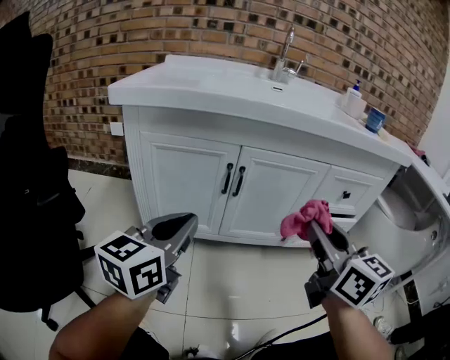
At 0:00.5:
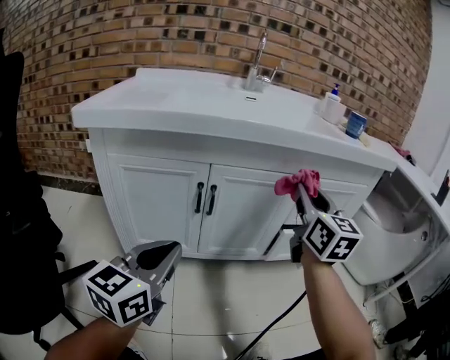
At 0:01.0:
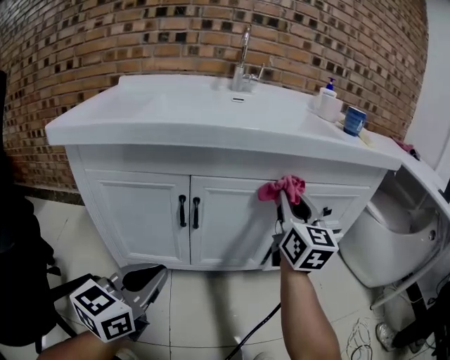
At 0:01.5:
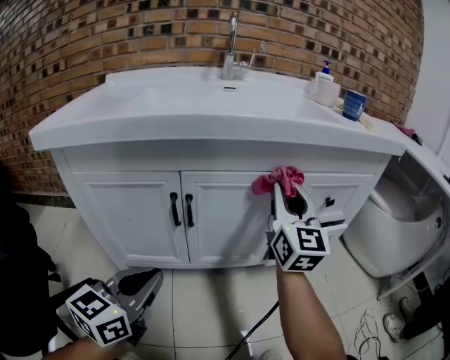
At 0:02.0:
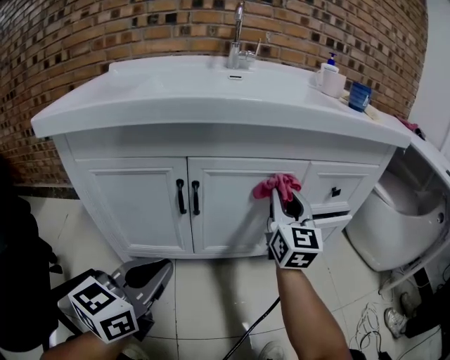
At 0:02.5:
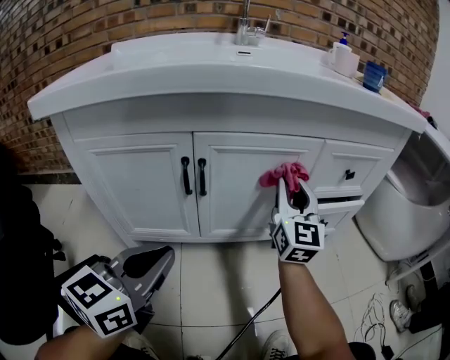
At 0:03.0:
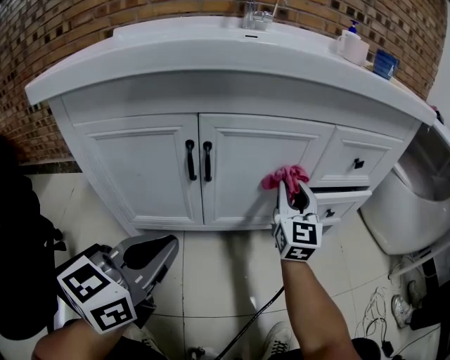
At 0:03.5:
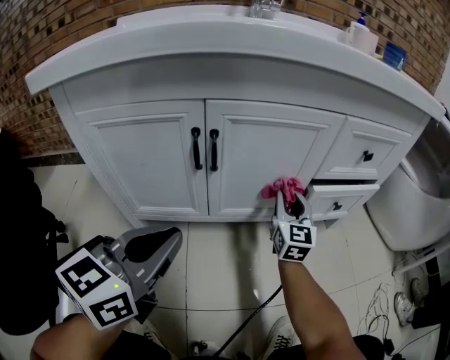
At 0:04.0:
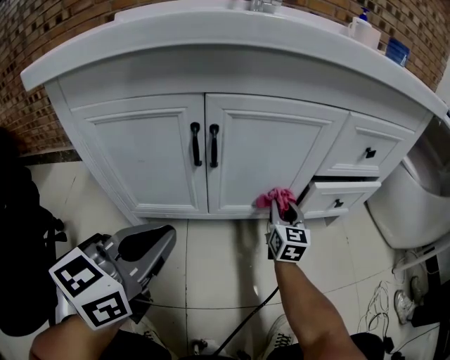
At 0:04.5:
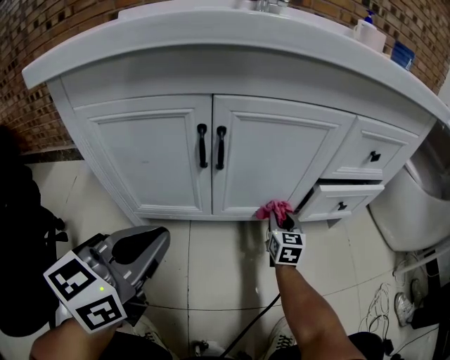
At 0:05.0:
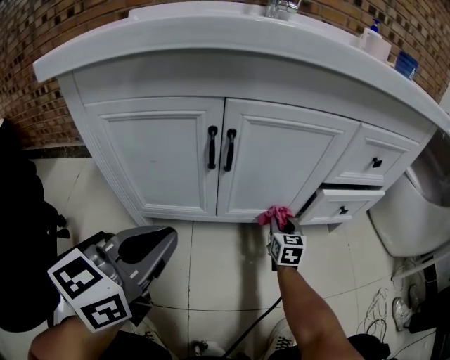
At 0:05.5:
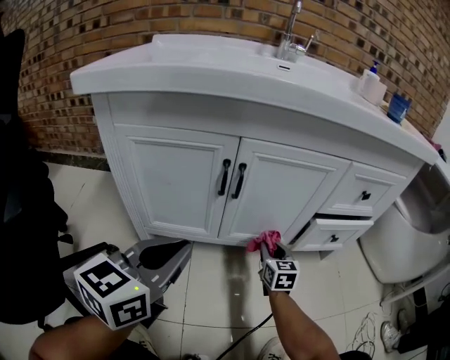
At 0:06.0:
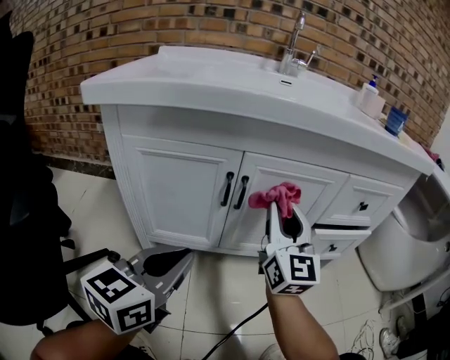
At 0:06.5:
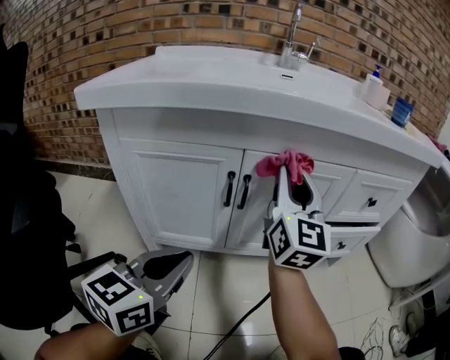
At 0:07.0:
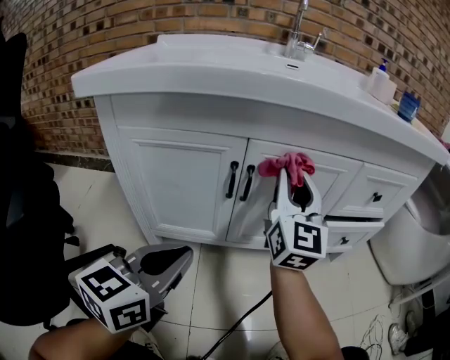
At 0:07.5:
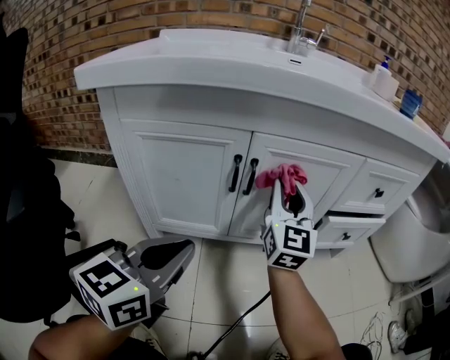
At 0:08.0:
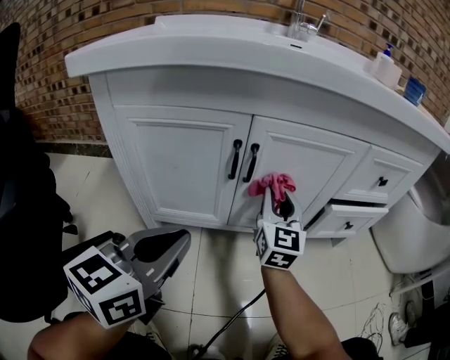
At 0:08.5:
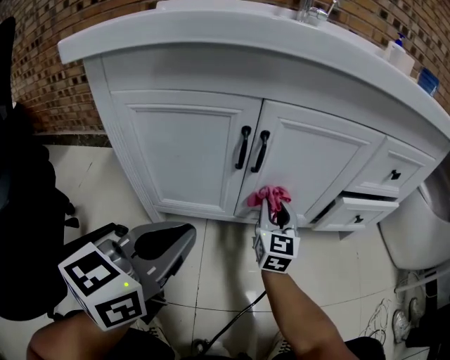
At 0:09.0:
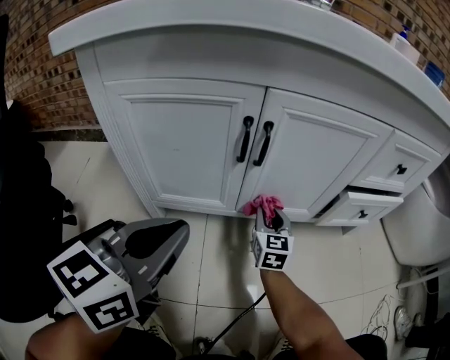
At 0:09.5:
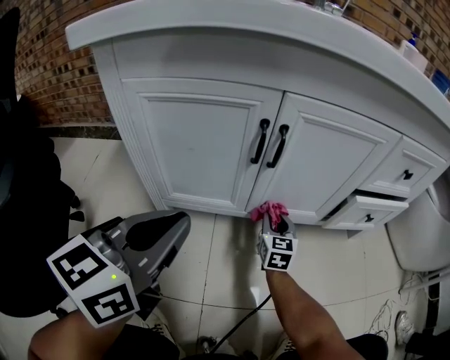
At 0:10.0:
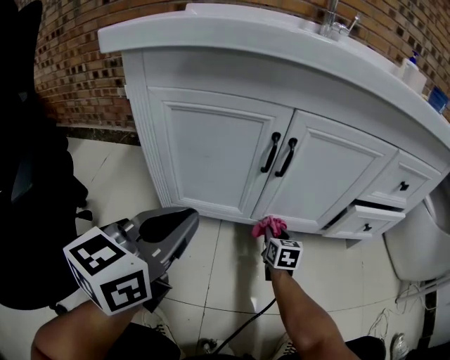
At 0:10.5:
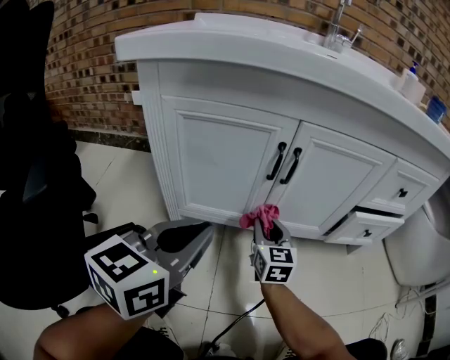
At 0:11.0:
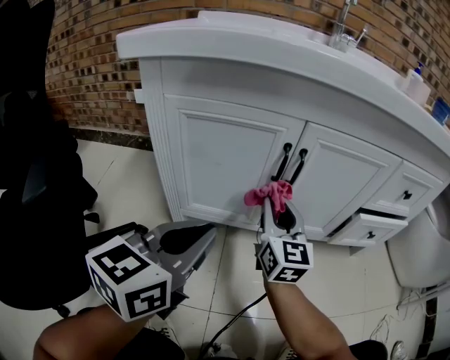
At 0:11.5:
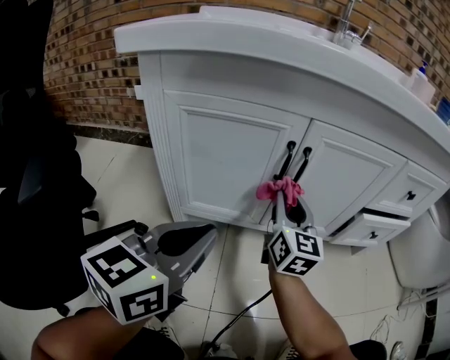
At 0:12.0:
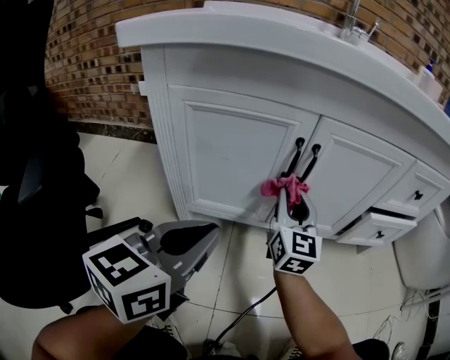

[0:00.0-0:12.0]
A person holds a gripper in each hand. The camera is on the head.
0:00.0 to 0:02.0: The right gripper heads forward, covering about 20 cm, and turns by approximately 30 degrees, while the left gripper moves downward, roughly 5 cm.
0:02.0 to 0:04.0: The right gripper travels downward by some 25 cm, and turns by roughly 20 degrees.
0:04.0 to 0:06.0: The right gripper is displaced upward by approximately 25 cm, and changes its angle by roughly 30 degrees.
0:06.0 to 0:08.0: The right gripper goes some 15 cm downward and forward.
0:08.0 to 0:10.0: The right gripper moves downward, roughly 25 cm, and tips its fingers downward by approximately 40 degrees.
0:10.0 to 0:12.0: The right gripper moves upward, about 25 cm, and tilts its fingers roughly 40 degrees upward.

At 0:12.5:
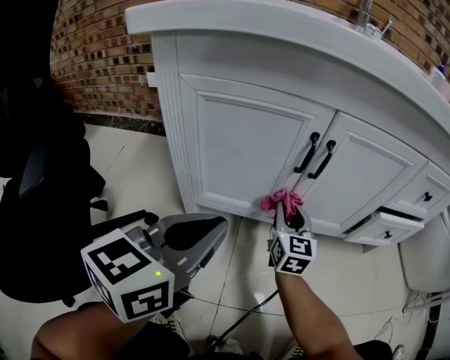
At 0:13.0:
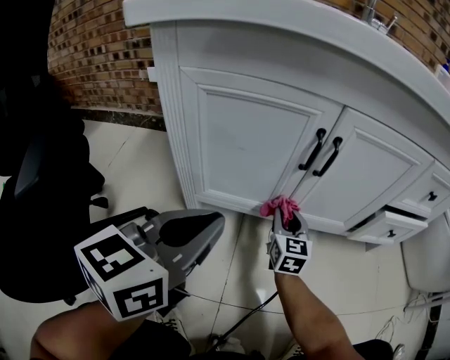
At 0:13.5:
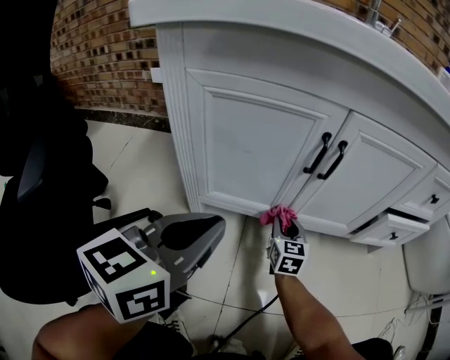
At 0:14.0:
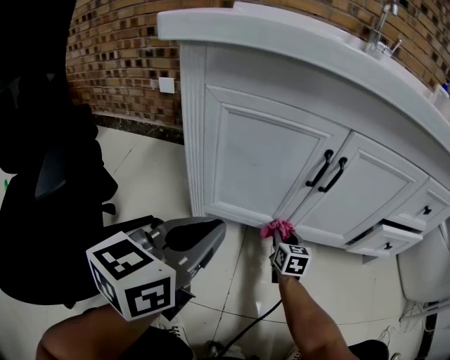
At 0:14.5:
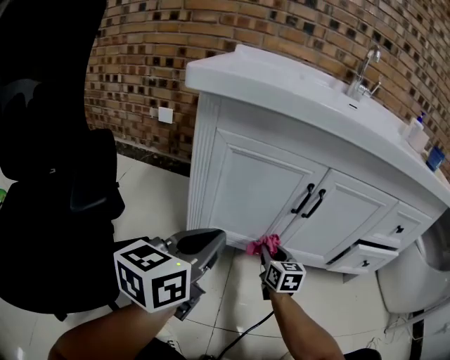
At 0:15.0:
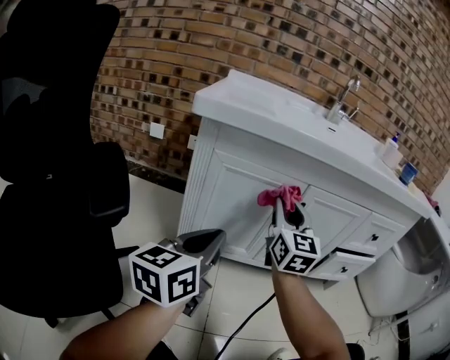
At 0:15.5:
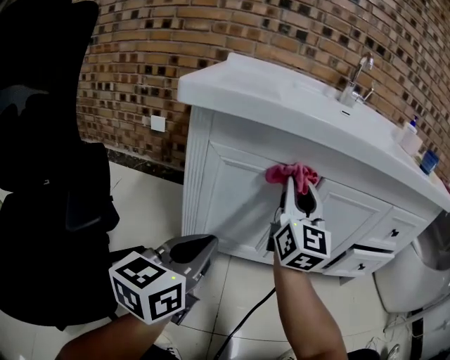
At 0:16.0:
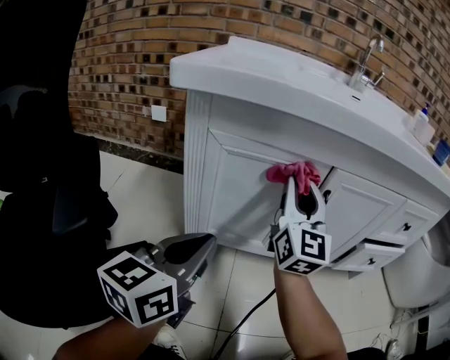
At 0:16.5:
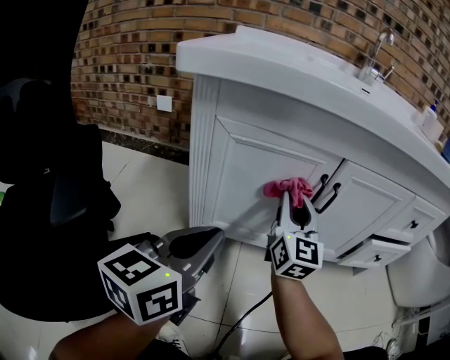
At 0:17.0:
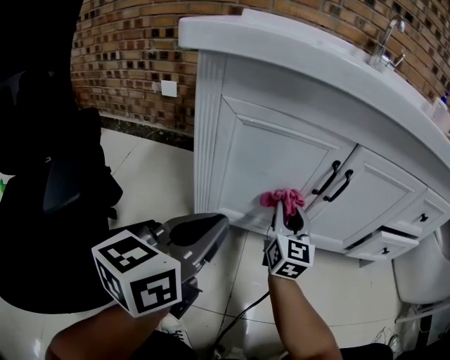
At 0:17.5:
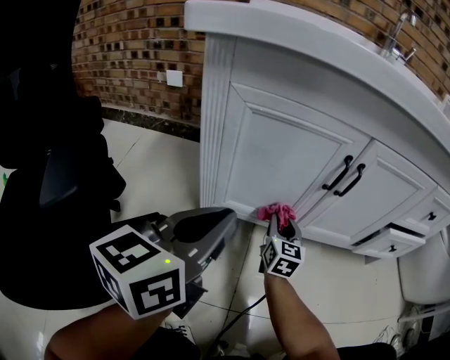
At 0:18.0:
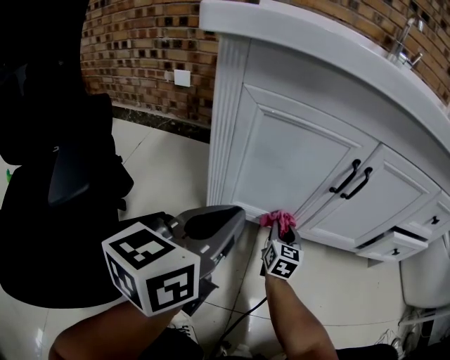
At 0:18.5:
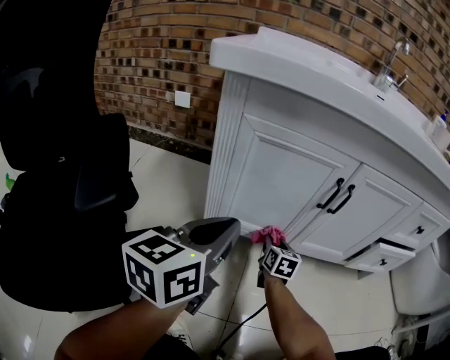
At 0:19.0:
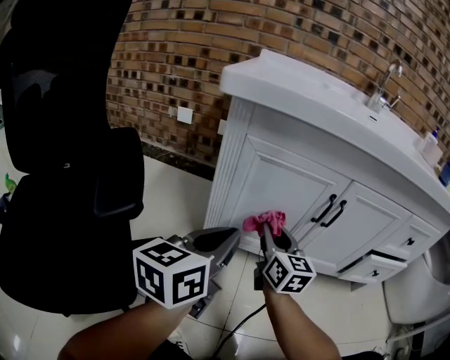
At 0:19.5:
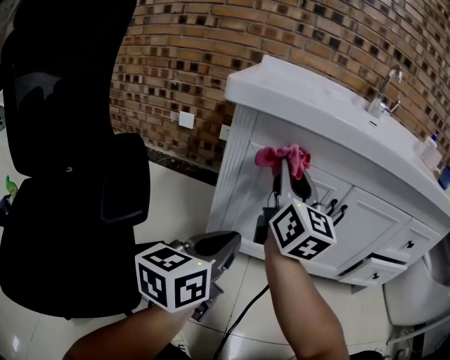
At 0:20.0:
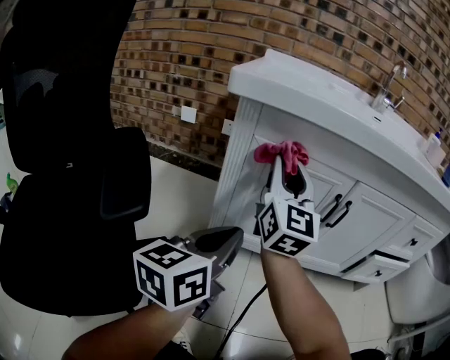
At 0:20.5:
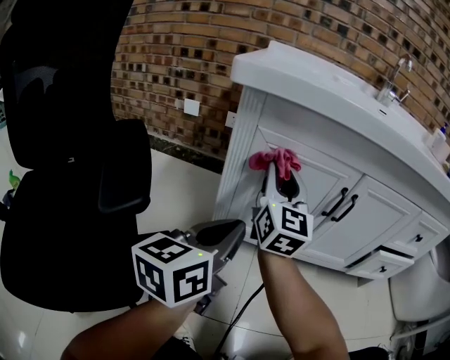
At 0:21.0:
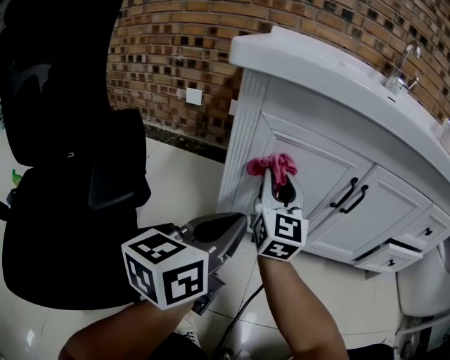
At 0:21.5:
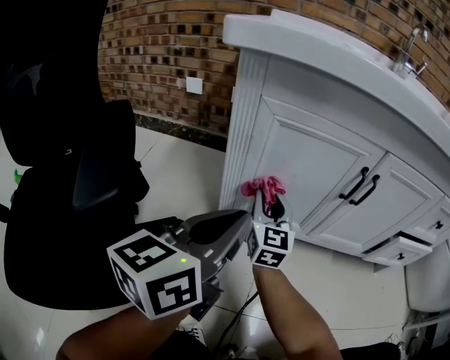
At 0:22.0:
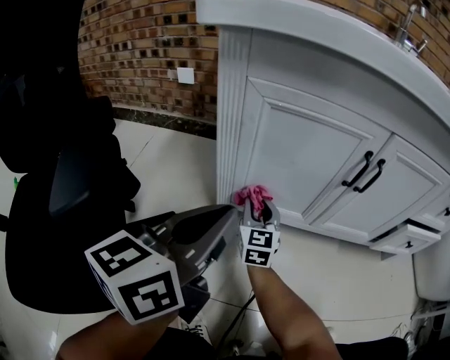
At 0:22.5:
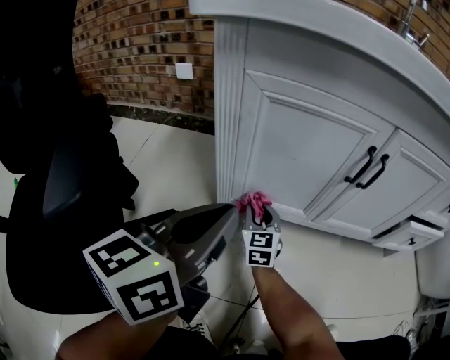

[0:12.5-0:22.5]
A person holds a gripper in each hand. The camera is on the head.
0:12.5 to 0:14.5: The left gripper shifts roughly 5 cm to the left, while the right gripper travels downward and back again, about 15 cm each way.
0:14.5 to 0:16.5: The right gripper is displaced upward by roughly 20 cm, and points its fingers about 30 degrees further upward.
0:16.5 to 0:18.5: The right gripper shifts about 30 cm downward, and points its fingers roughly 40 degrees further downward.
0:18.5 to 0:20.5: The right gripper heads upward, covering some 35 cm, and angles its fingers upward, by approximately 40 degrees.
0:20.5 to 0:22.5: The right gripper goes approximately 35 cm downward, and changes its angle by some 30 degrees.

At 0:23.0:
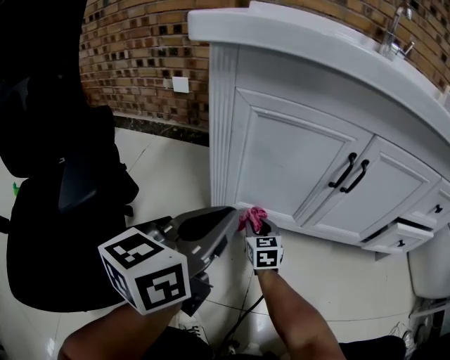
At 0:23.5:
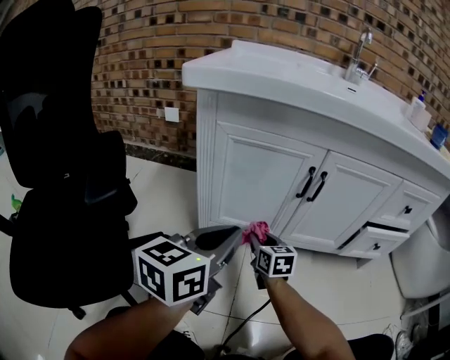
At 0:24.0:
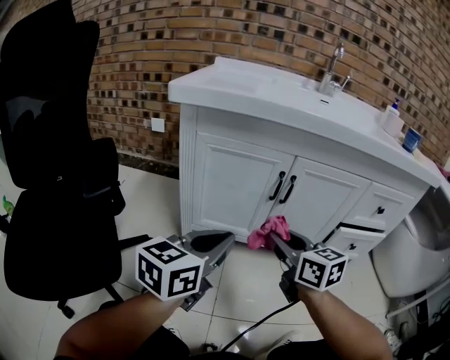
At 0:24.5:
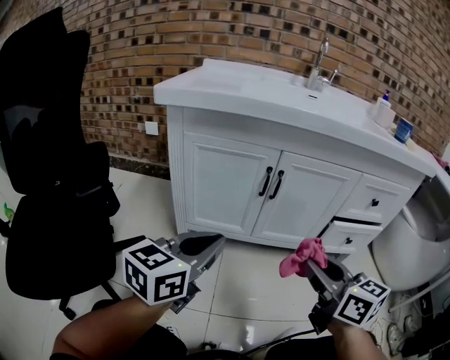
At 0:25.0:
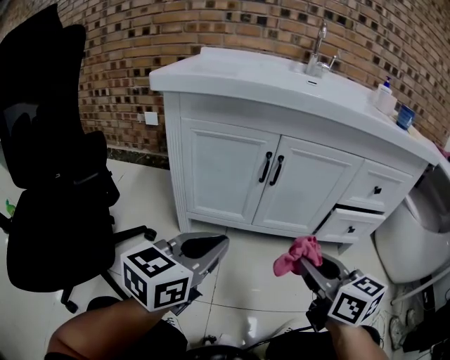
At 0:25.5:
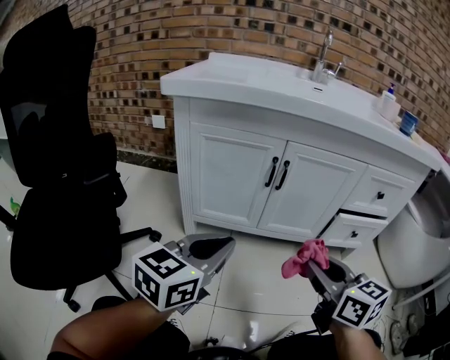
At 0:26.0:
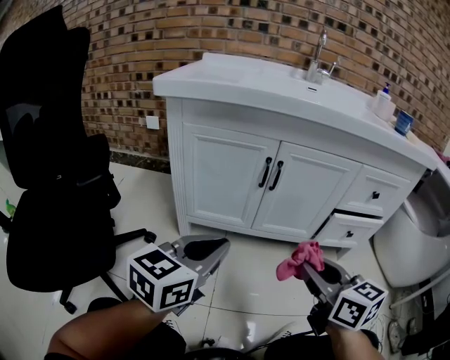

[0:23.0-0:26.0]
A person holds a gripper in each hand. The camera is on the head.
0:23.0 to 0:24.5: The left gripper goes about 15 cm to the right and backward. The right gripper moves upward, to the right and backward, roughly 50 cm, and changes its angle by roughly 20 degrees.
0:24.5 to 0:26.0: There are only small adjustments of the grippers.

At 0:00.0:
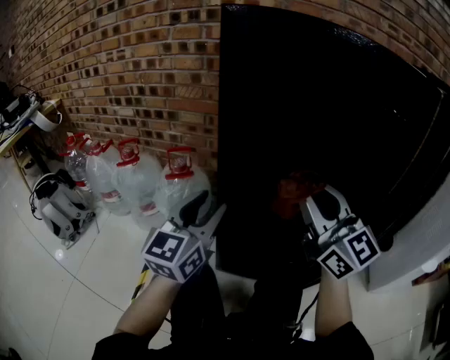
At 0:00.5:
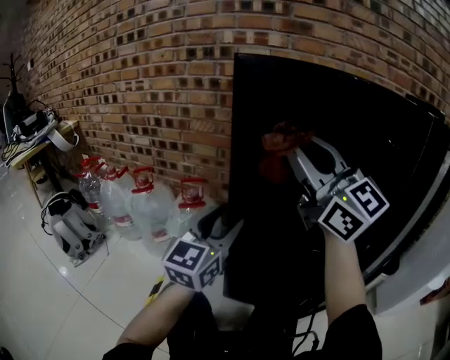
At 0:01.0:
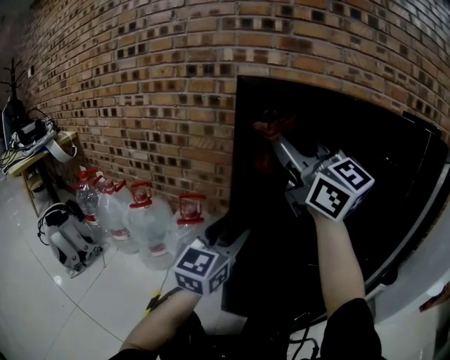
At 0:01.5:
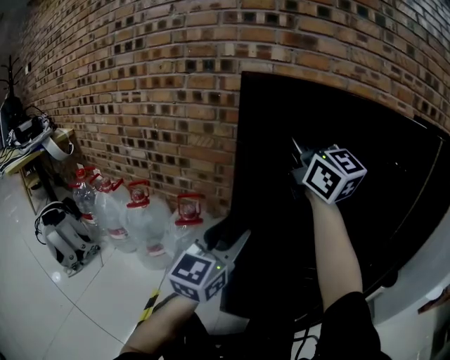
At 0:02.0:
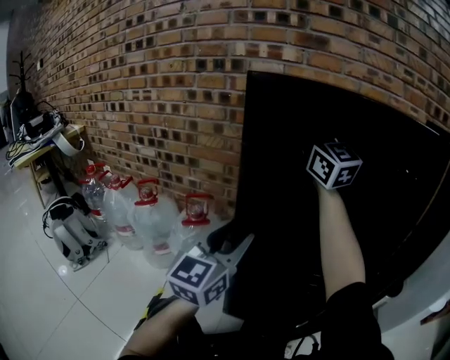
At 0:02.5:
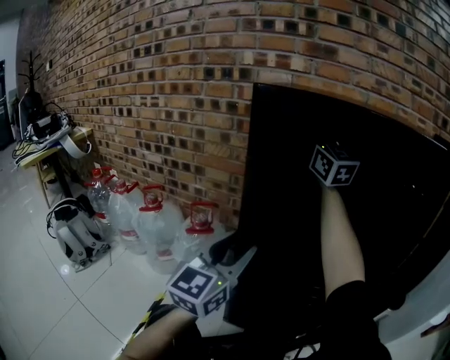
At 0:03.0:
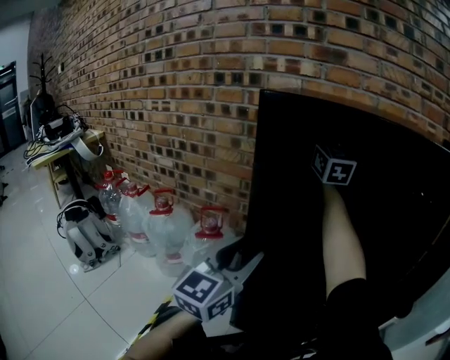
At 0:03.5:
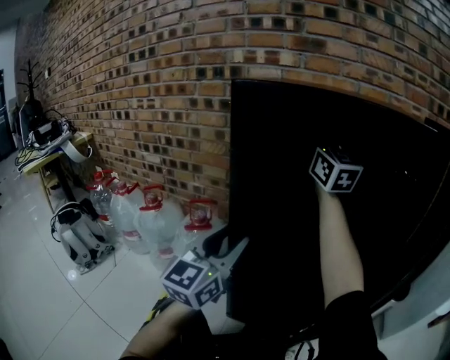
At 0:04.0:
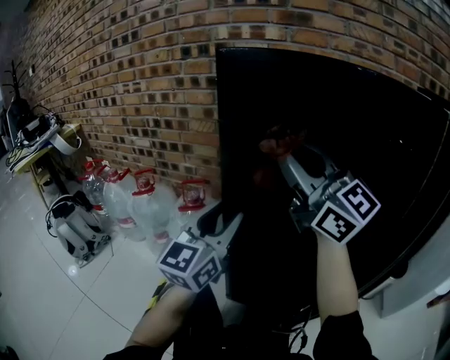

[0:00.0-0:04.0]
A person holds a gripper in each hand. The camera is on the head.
0:00.0 to 0:02.0: The right gripper moves forward and upward, roughly 30 cm. The left gripper shifts approximately 5 cm upward.
0:02.0 to 0:04.0: The right gripper travels backward and downward by some 15 cm.
